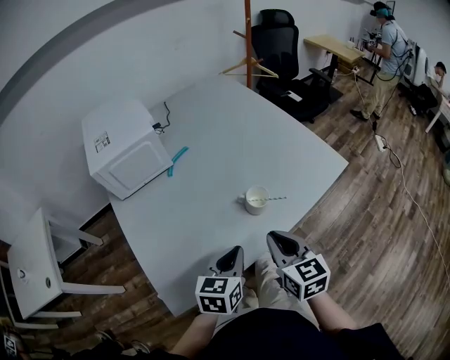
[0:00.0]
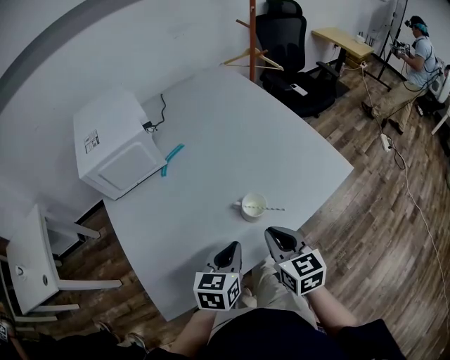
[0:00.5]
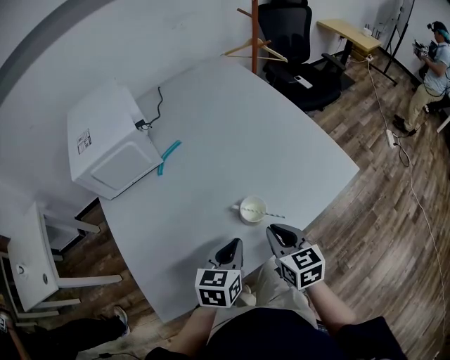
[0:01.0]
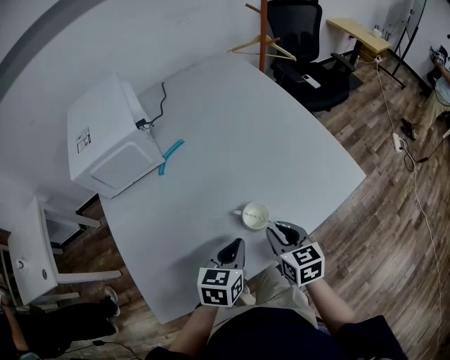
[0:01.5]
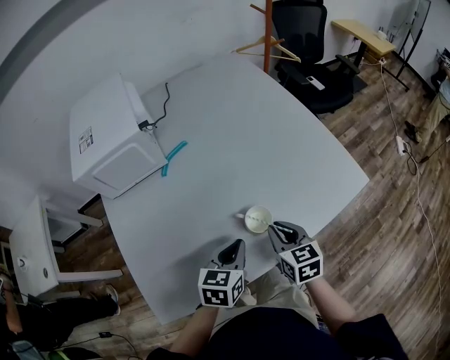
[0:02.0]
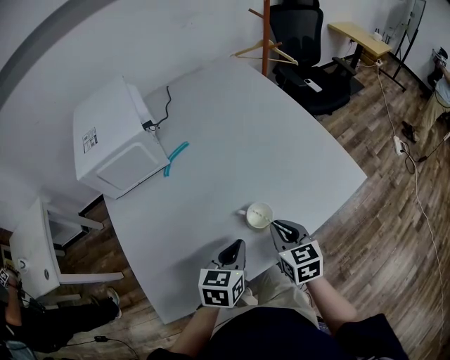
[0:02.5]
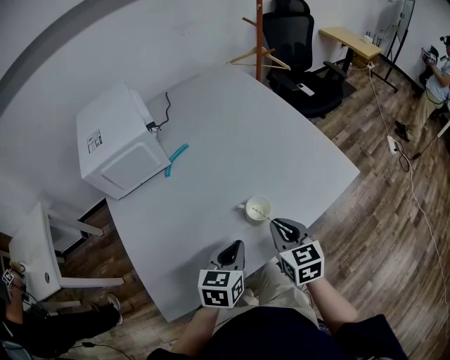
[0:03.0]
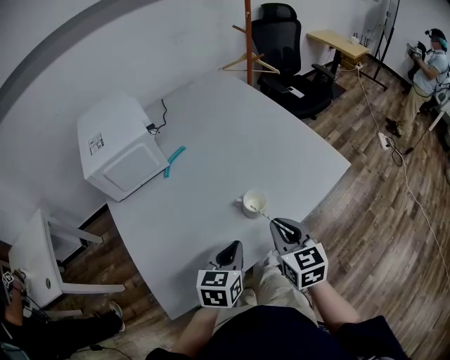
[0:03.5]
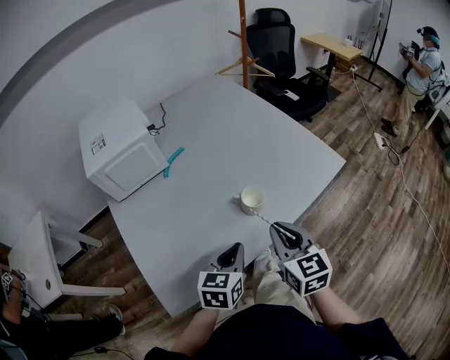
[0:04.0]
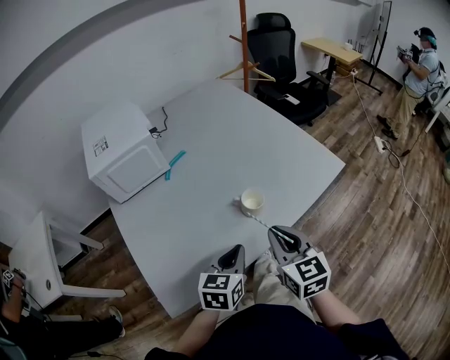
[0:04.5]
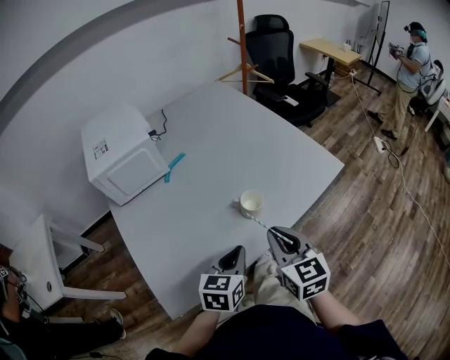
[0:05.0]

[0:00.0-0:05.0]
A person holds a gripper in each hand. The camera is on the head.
0.0 to 2.5 s: The left gripper heads forward, covering about 10 cm. The right gripper heads forward and downward, covering about 15 cm.
2.5 to 5.0 s: The left gripper shifts some 10 cm backward. Meanwhile the right gripper heads backward and upward, covering about 15 cm.

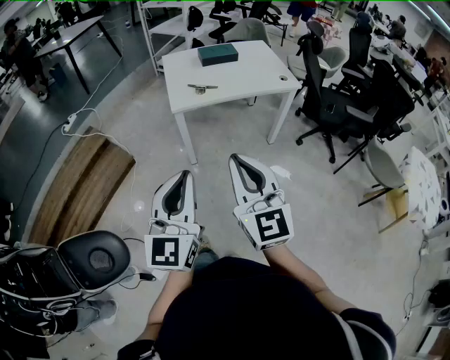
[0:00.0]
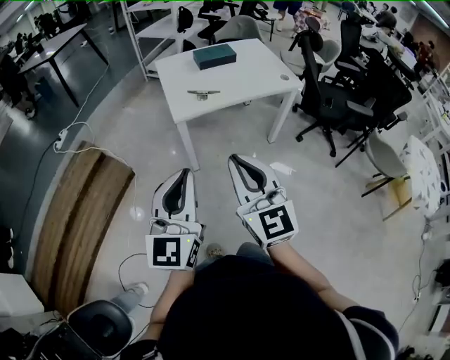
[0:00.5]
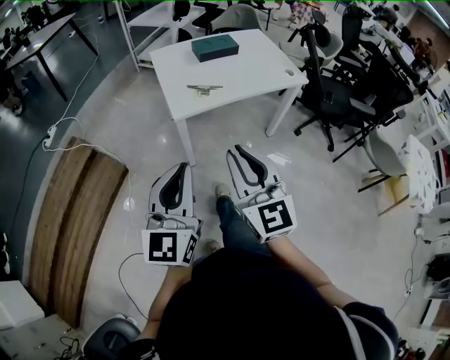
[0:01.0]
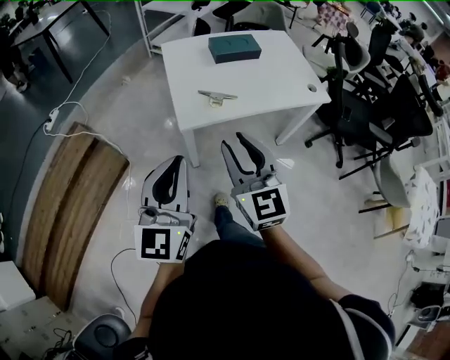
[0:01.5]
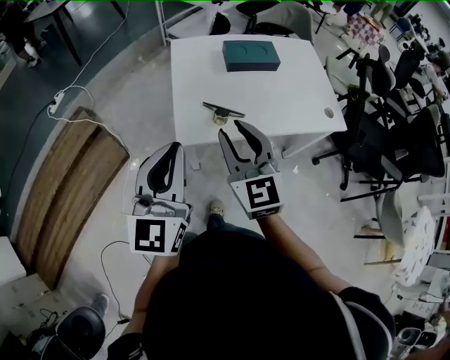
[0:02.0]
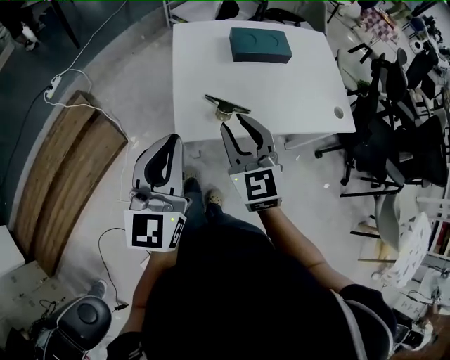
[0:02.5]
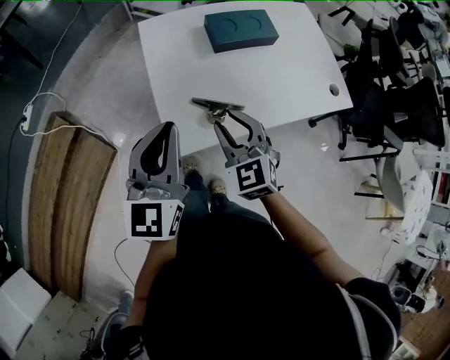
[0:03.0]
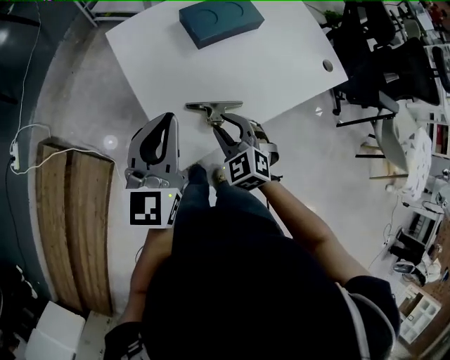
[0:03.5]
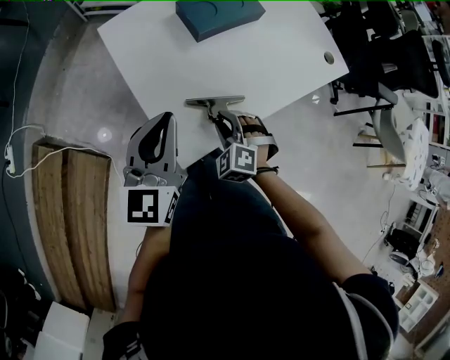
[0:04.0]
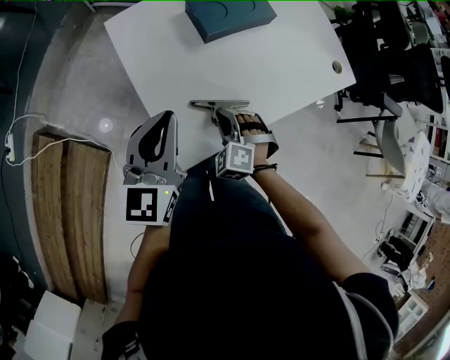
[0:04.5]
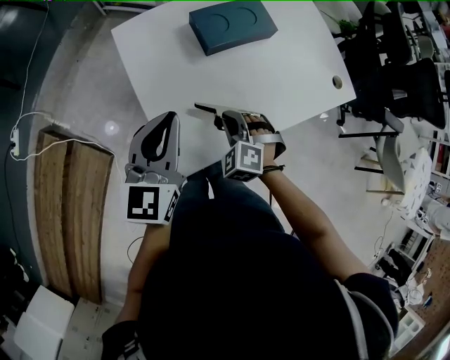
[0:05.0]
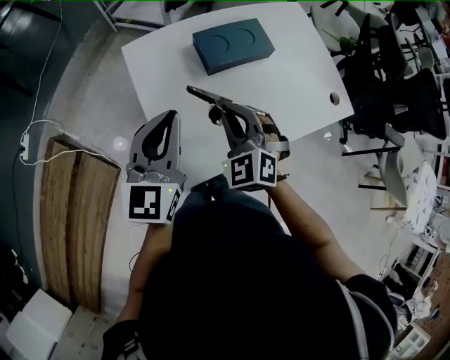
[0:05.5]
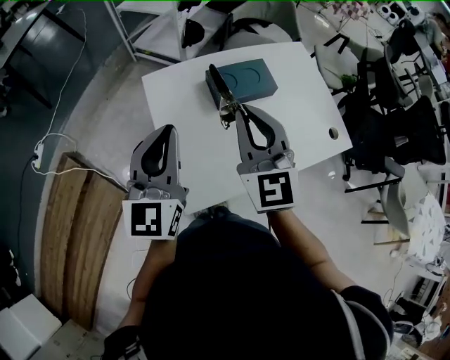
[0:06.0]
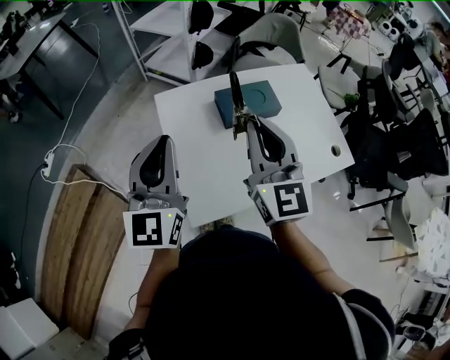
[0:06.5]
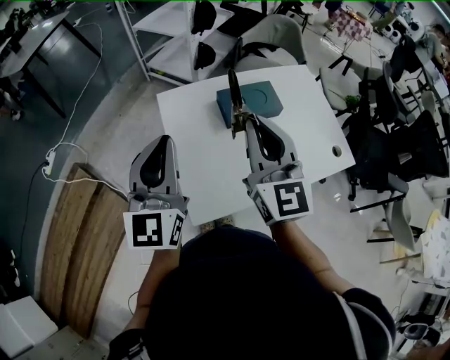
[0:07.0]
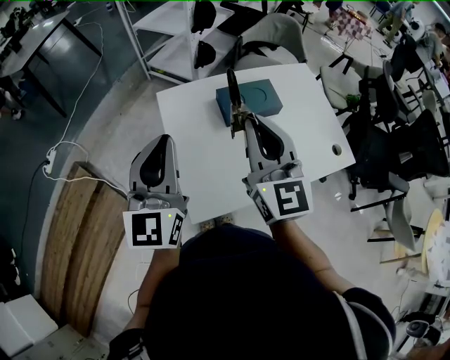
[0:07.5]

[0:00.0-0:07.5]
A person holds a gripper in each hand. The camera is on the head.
0.0 to 2.0 s: Both grippers are carried forward, approximately 50 cm. The right gripper opens its fingers.
2.0 to 4.0 s: The right gripper heads downward, covering approximately 30 cm, and tilts its fingers about 50 degrees downward, while the left gripper changes place by roughly 30 cm, and changes its angle by roughly 30 degrees.
4.0 to 5.5 s: The right gripper travels upward and forward by some 20 cm, changes its angle by approximately 30 degrees, and closes up. The left gripper heads forward and upward, covering approximately 5 cm.
5.5 to 7.5 s: The right gripper moves upward, some 20 cm, and tilts its fingers approximately 40 degrees upward. The left gripper travels upward by roughly 10 cm.

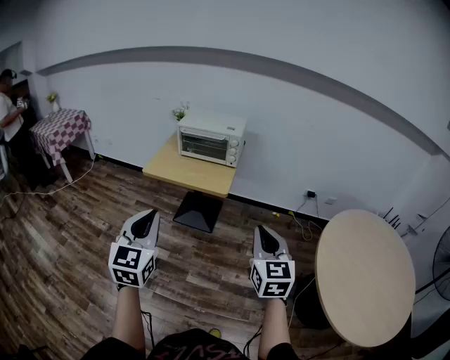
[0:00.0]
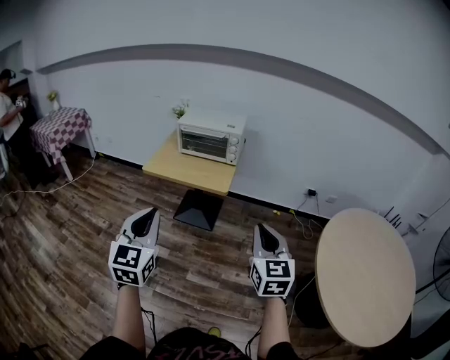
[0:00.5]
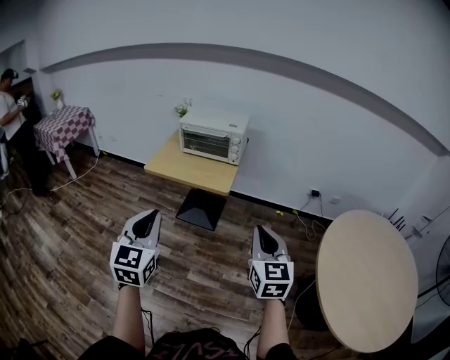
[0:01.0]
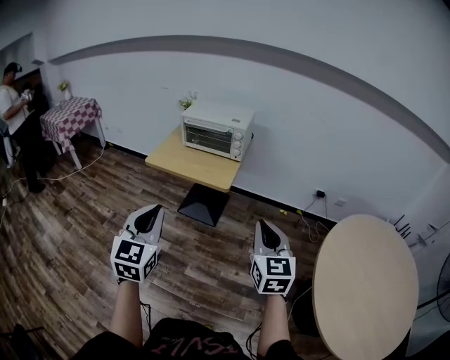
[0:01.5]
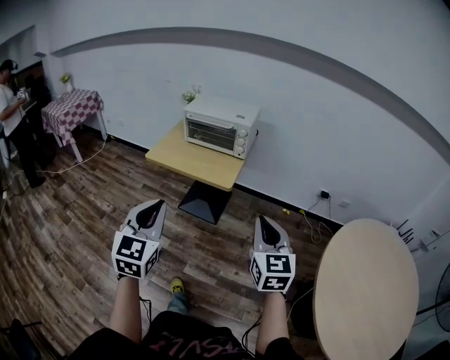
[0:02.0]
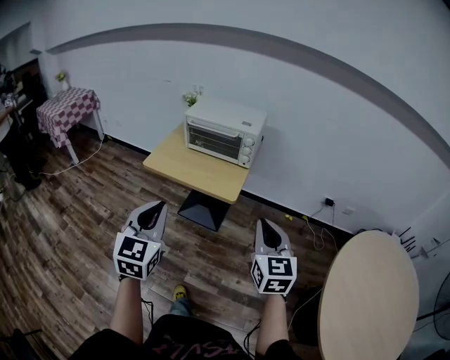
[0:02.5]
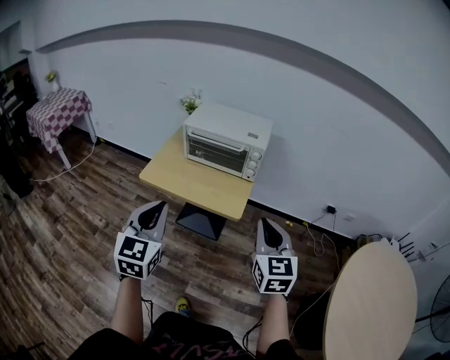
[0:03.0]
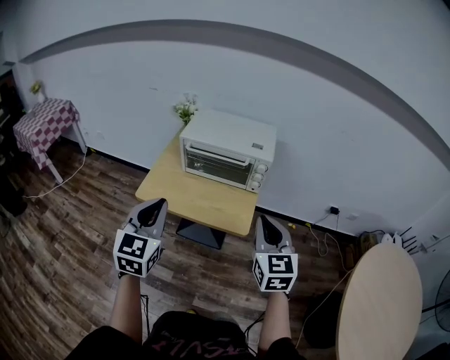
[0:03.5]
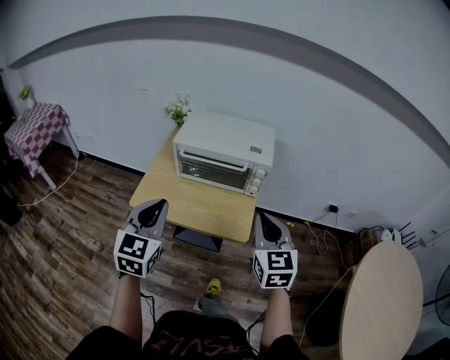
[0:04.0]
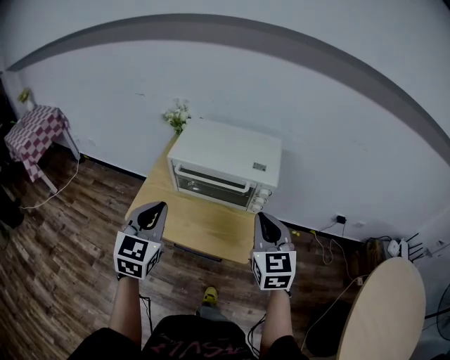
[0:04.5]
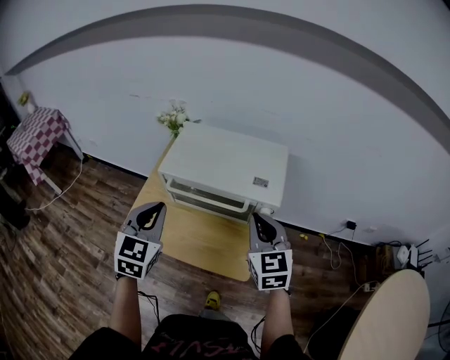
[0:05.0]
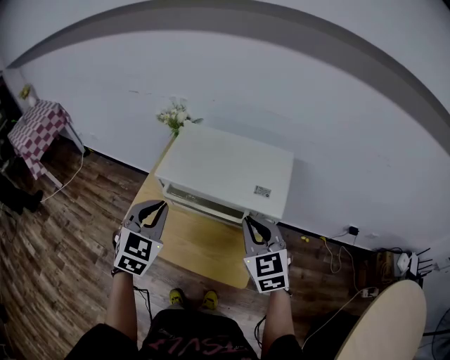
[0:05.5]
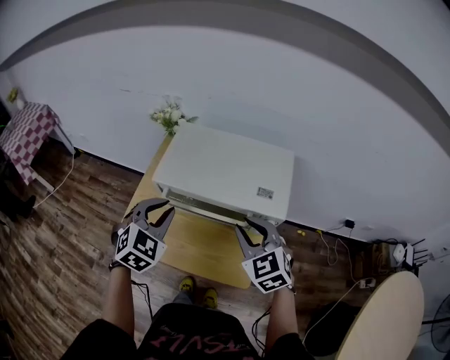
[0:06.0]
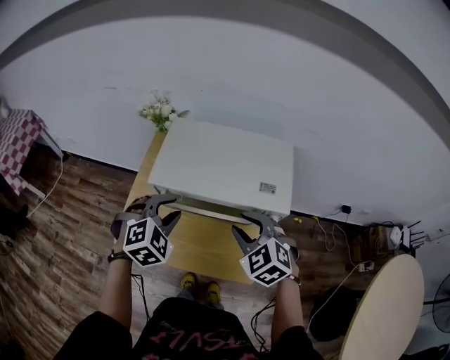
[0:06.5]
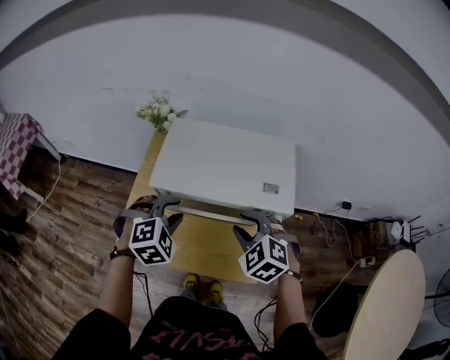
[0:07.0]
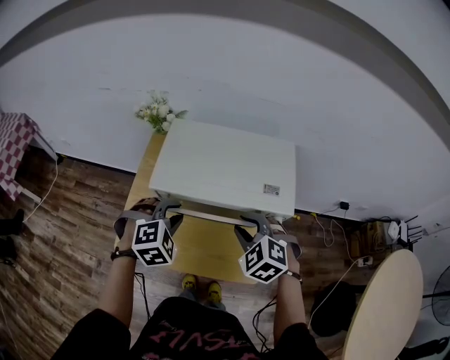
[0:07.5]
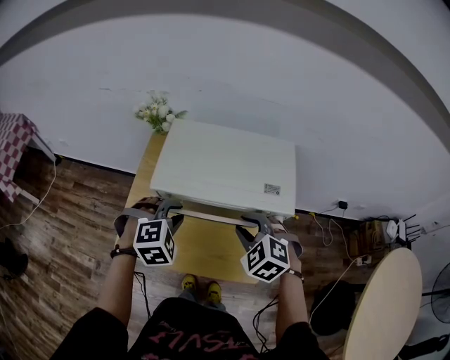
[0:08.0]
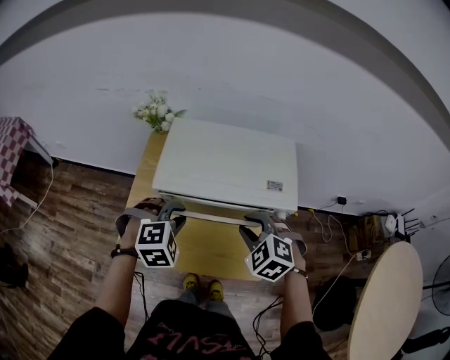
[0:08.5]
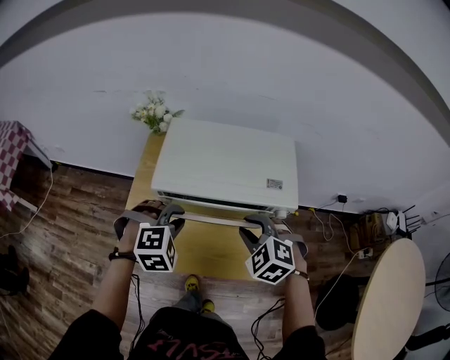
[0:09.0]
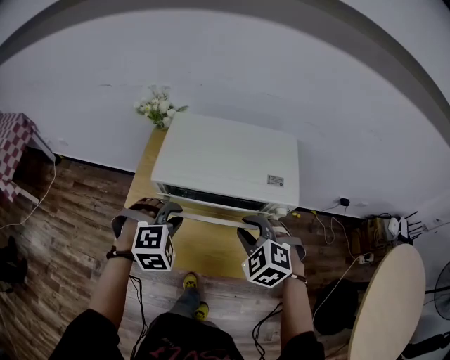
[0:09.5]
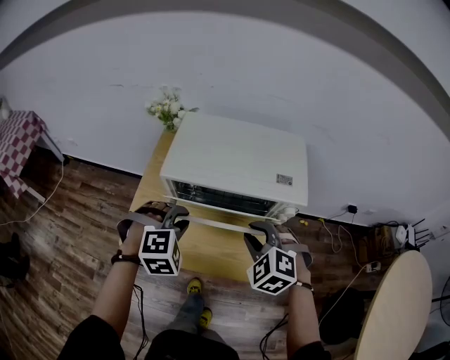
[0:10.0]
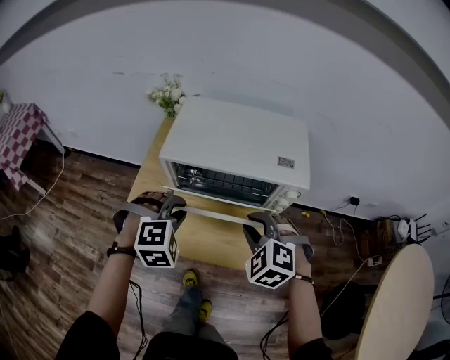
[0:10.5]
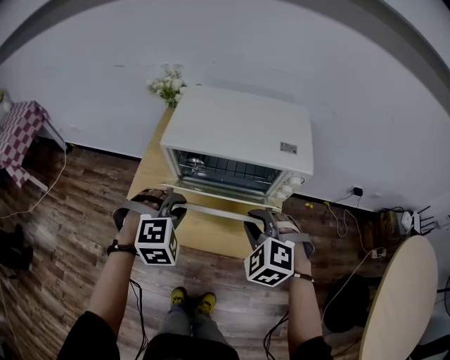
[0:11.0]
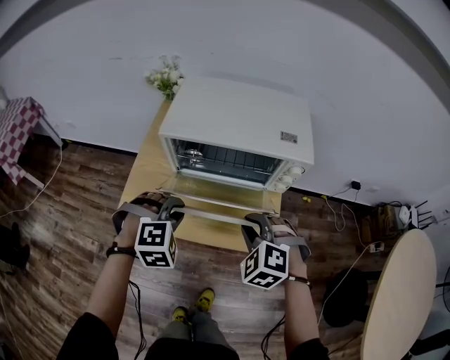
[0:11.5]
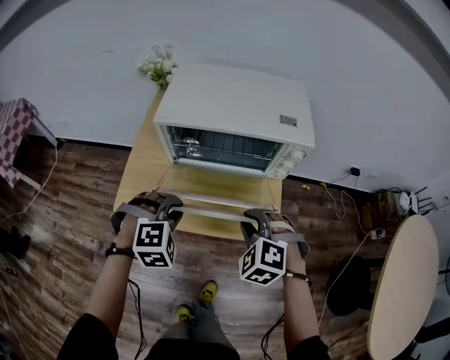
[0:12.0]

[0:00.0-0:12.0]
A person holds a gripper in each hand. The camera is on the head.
0.0 to 2.0 s: The left gripper goes some 10 cm forward and to the right; the right gripper is displaced forward by about 10 cm.
2.0 to 4.0 s: The left gripper shifts about 40 cm forward. The right gripper shifts some 40 cm forward and to the left.
4.0 to 6.0 s: Both grippers move forward, roughly 25 cm. The right gripper changes its angle by about 30 degrees; the left gripper changes its angle by approximately 30 degrees.
6.0 to 8.0 s: Both grippers travel together downward, approximately 5 cm. The right gripper changes its angle by some 30 degrees. The left gripper changes its angle by about 40 degrees.
8.0 to 10.0 s: The left gripper changes place by about 5 cm.
10.0 to 12.0 s: The grippers both shift backward and downward by roughly 10 cm.

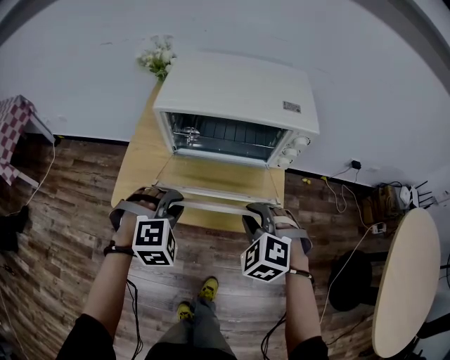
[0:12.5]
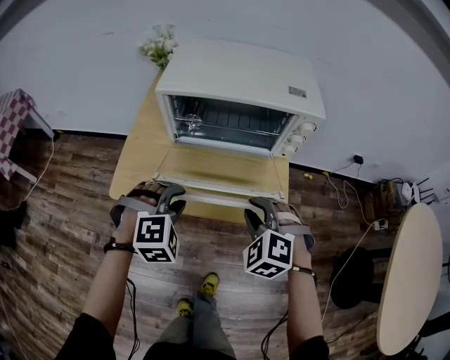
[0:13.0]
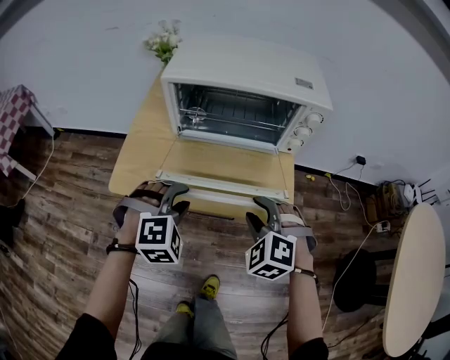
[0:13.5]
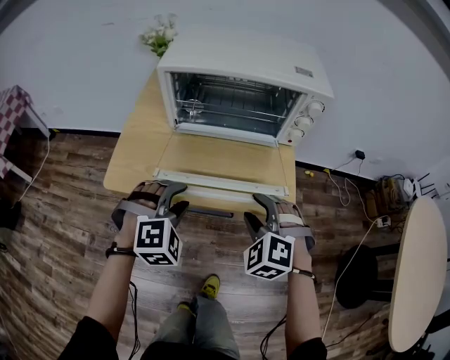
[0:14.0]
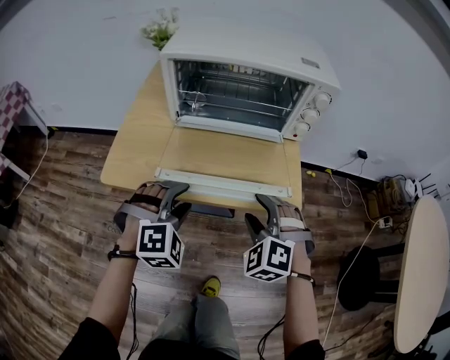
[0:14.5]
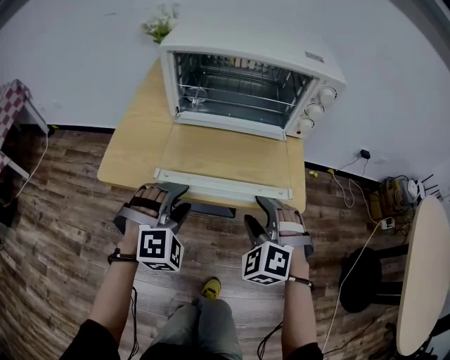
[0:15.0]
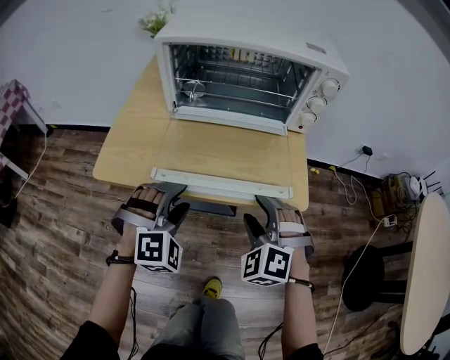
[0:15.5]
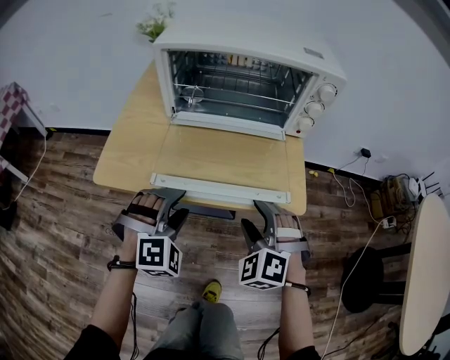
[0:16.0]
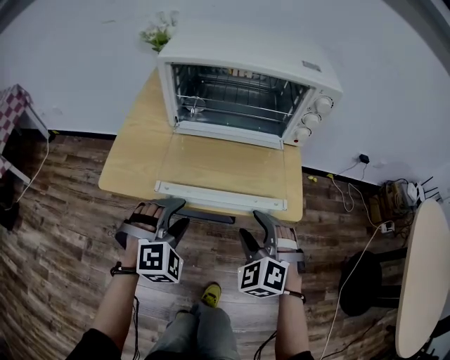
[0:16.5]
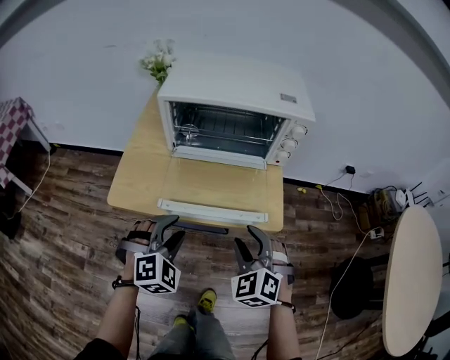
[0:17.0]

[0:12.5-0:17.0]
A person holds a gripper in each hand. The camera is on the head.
12.5 to 14.5 s: The two grippers go approximately 10 cm downward. The right gripper opens its fingers. The left gripper opens its fingers.
14.5 to 17.0 s: The left gripper ends up about 5 cm from where it was; the right gripper goes roughly 5 cm upward.
